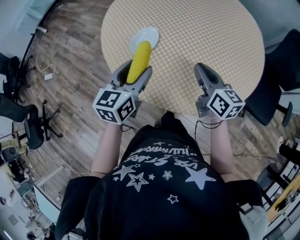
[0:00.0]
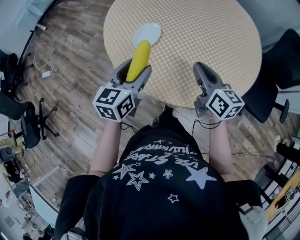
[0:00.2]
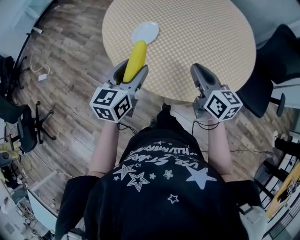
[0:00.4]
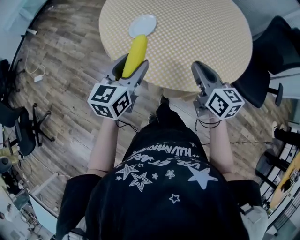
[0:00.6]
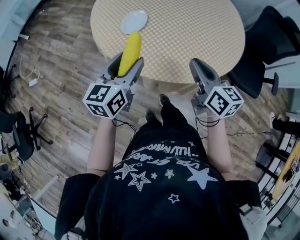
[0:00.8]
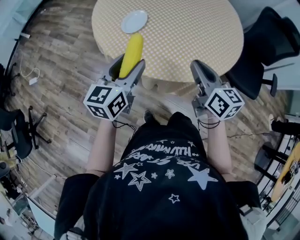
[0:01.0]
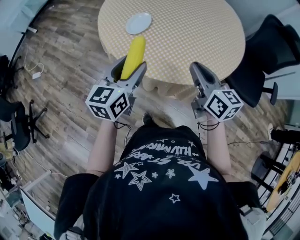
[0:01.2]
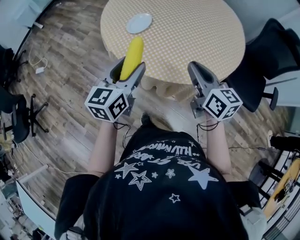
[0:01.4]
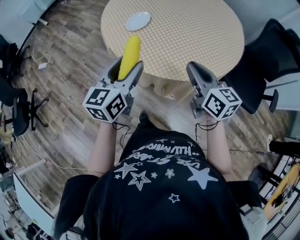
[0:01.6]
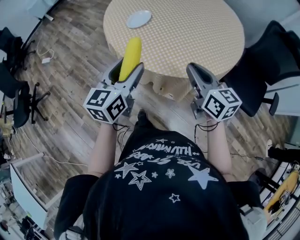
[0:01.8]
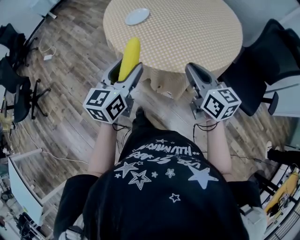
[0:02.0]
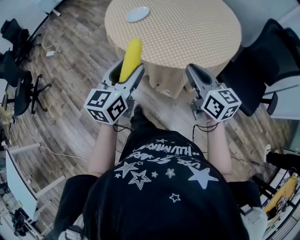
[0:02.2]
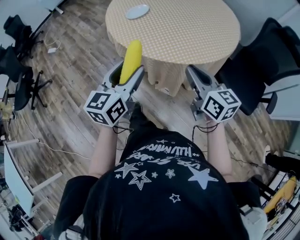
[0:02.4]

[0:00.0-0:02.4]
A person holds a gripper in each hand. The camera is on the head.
0:00.0 to 0:01.2: Both grippers travel together backward, roughly 15 cm.
0:01.2 to 0:02.4: Both grippers move backward and to the right, some 20 cm.

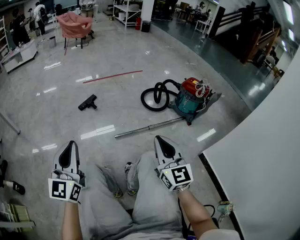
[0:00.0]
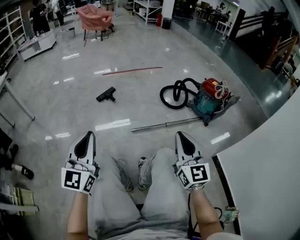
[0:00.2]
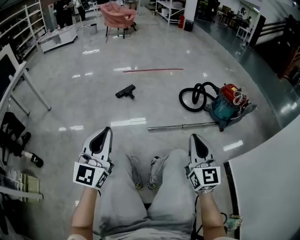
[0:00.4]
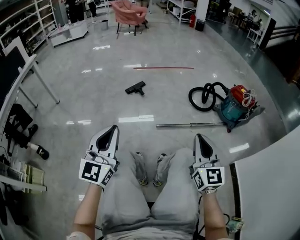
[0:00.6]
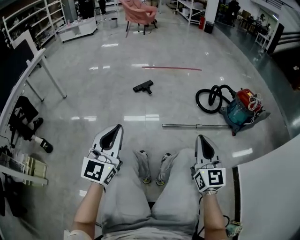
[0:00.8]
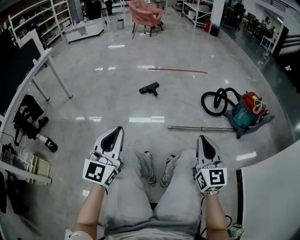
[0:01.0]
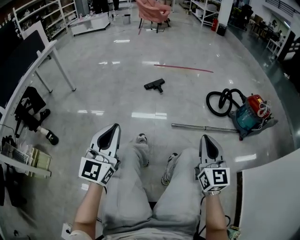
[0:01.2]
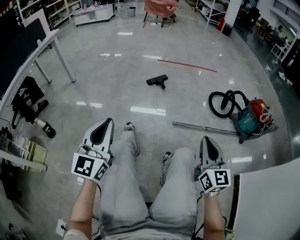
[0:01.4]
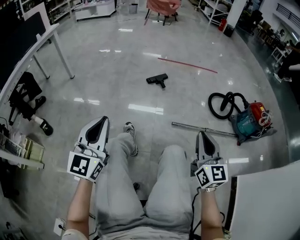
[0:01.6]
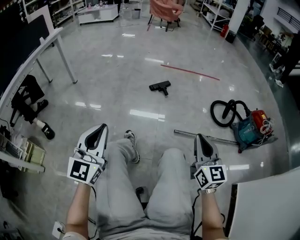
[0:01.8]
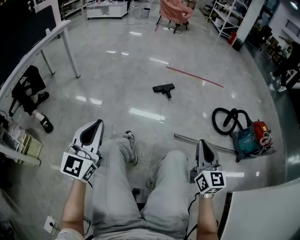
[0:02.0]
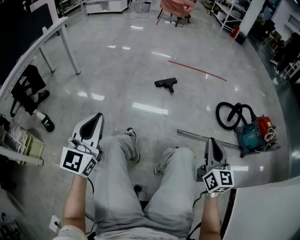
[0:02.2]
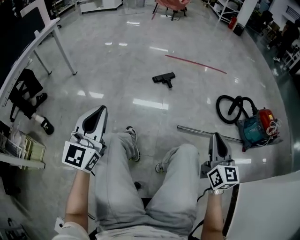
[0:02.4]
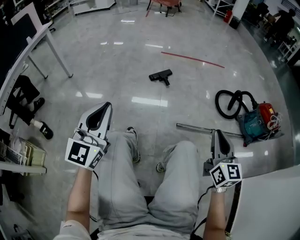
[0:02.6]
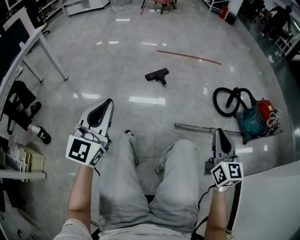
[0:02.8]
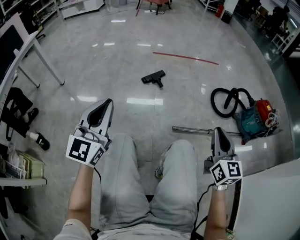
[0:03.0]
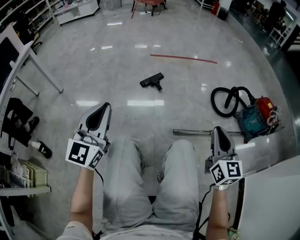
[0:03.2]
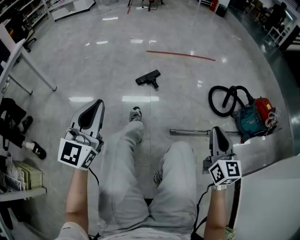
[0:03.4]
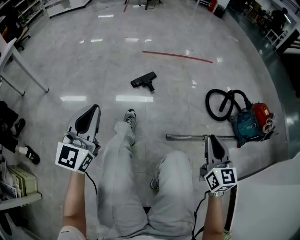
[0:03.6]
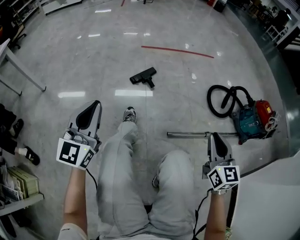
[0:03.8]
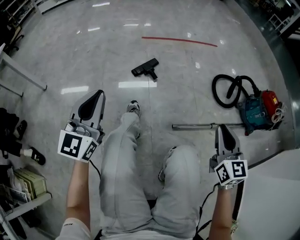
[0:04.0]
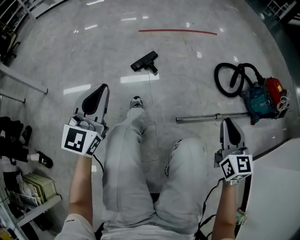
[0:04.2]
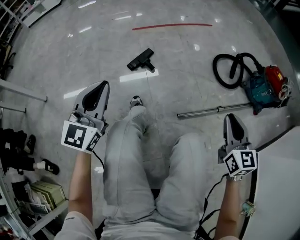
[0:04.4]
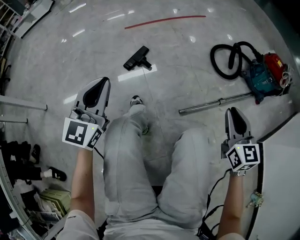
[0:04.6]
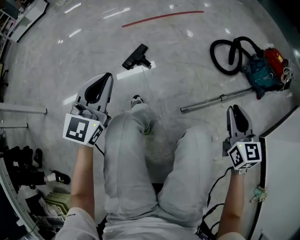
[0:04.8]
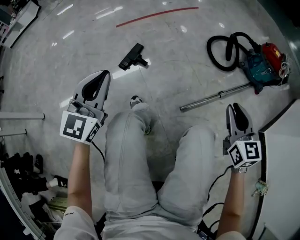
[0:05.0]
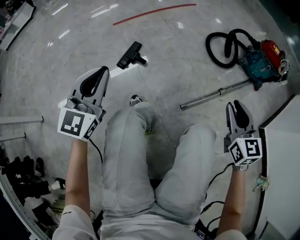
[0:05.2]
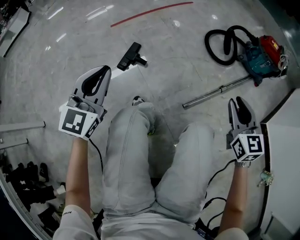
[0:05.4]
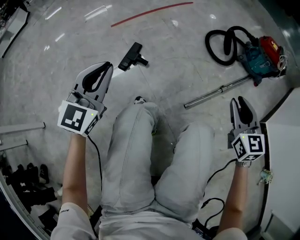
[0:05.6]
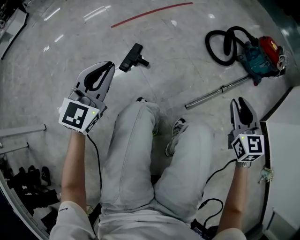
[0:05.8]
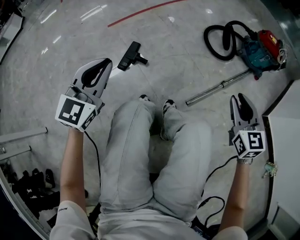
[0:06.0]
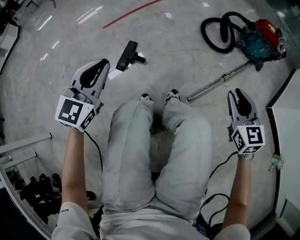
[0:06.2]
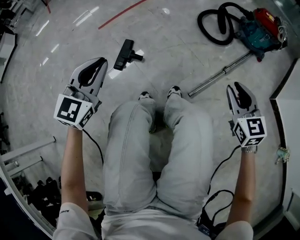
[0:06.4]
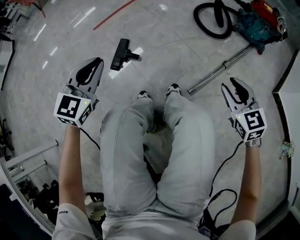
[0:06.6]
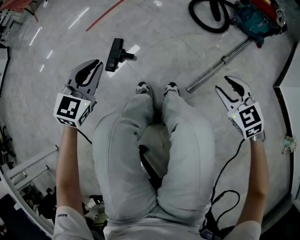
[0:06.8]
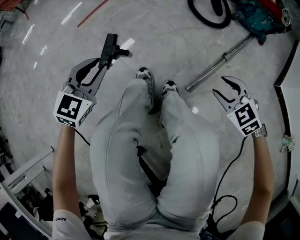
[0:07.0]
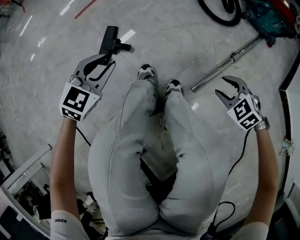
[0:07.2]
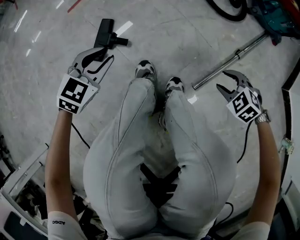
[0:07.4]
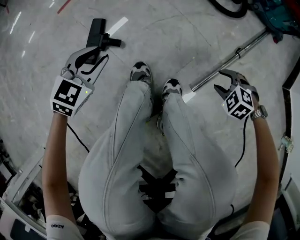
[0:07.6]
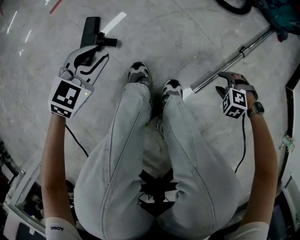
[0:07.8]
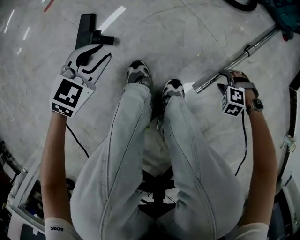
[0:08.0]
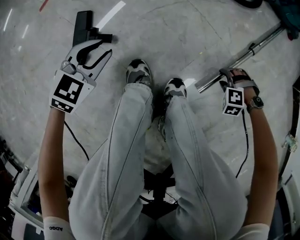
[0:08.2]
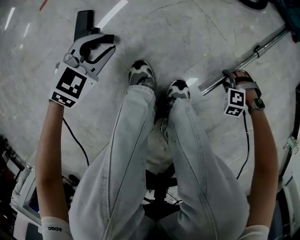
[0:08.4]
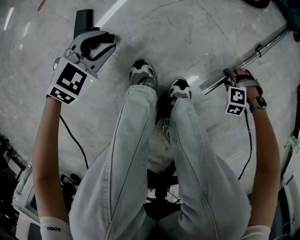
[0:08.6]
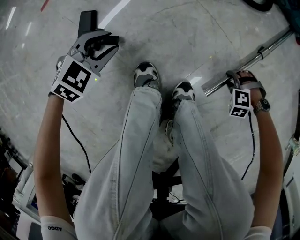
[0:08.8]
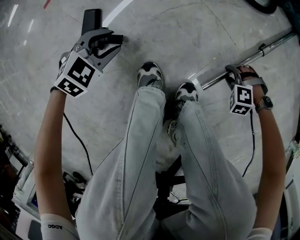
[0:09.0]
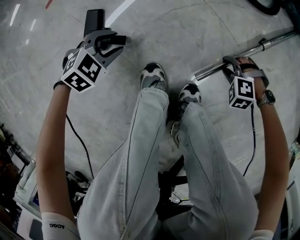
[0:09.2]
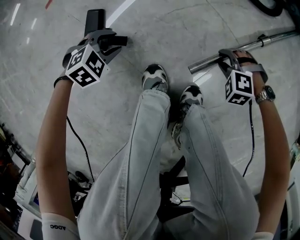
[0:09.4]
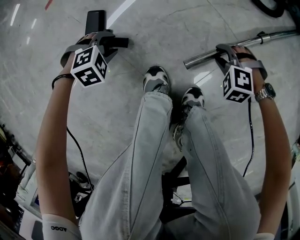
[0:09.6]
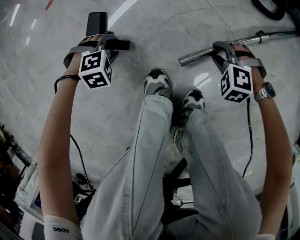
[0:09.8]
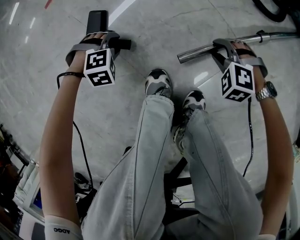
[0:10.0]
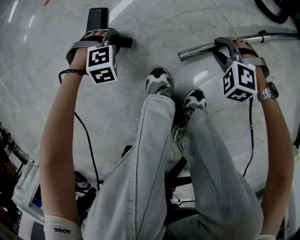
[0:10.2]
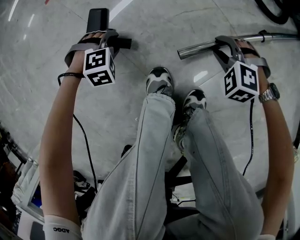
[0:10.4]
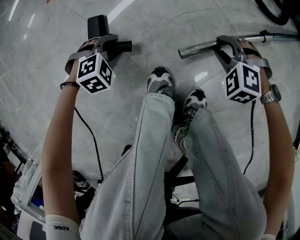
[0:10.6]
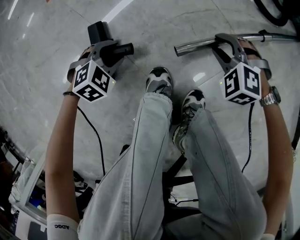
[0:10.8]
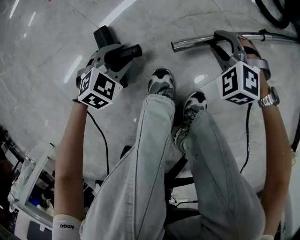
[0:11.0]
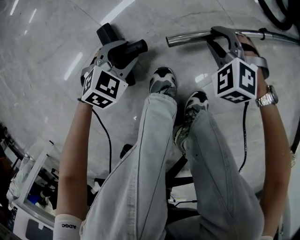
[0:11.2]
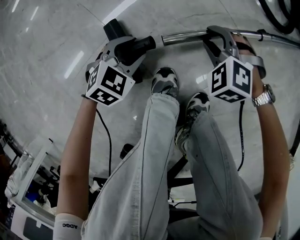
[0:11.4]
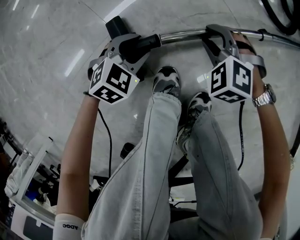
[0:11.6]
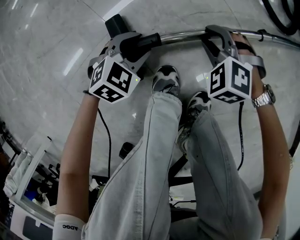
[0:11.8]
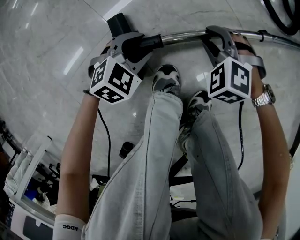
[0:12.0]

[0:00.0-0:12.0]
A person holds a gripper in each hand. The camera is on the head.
0:00.0 to 0:01.6: The left gripper moves to the left, roughly 15 cm; the right gripper is displaced to the left and forward by approximately 15 cm.
0:01.6 to 0:03.0: The right gripper is displaced forward and to the right by approximately 15 cm. Meanwhile the left gripper goes roughly 20 cm forward.
0:03.0 to 0:04.4: The right gripper moves forward and downward, about 15 cm. Meanwhile the left gripper travels forward by approximately 25 cm.
0:04.4 to 0:06.0: The left gripper travels forward by approximately 15 cm, and swivels roughly 30 degrees, while the right gripper is displaced to the left by some 5 cm.
0:06.0 to 0:07.6: The two grippers go about 35 cm downward. The left gripper tips its fingers downward by roughly 30 degrees, and opens; the right gripper tips its fingers downward by approximately 50 degrees, and opens up.
0:07.6 to 0:09.0: The grippers both shift downward by approximately 15 cm. The left gripper swivels approximately 20 degrees, while the right gripper swivels approximately 30 degrees.
0:09.0 to 0:10.4: The left gripper travels downward by about 10 cm, and turns by approximately 30 degrees; the right gripper ends up about 20 cm from where it was.
0:10.4 to 0:12.0: The right gripper ends up approximately 10 cm from where it was, while the left gripper shifts by approximately 10 cm, and changes its angle by roughly 40 degrees.

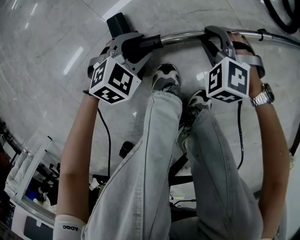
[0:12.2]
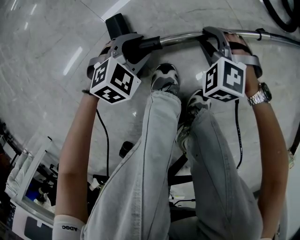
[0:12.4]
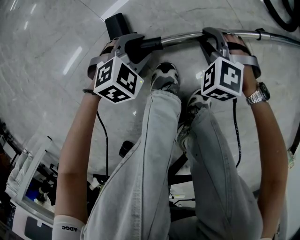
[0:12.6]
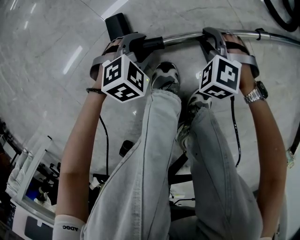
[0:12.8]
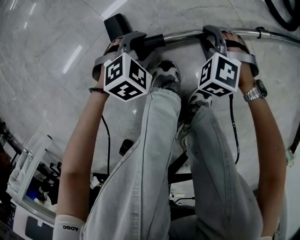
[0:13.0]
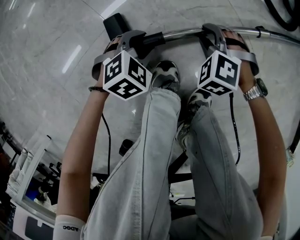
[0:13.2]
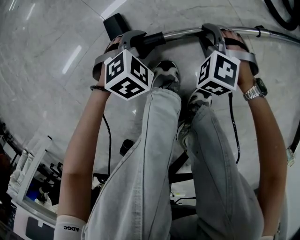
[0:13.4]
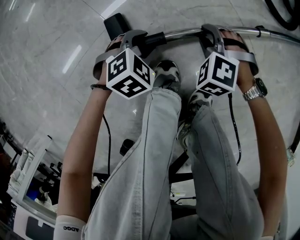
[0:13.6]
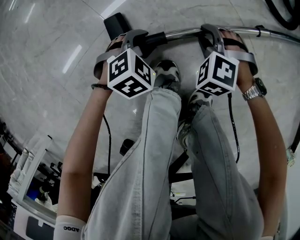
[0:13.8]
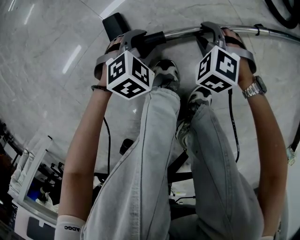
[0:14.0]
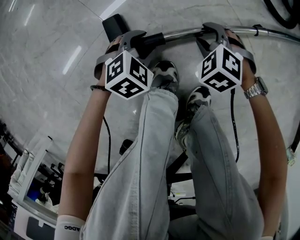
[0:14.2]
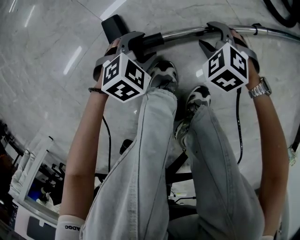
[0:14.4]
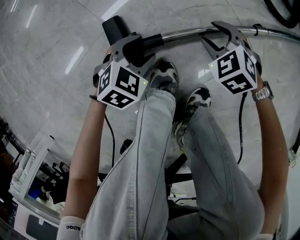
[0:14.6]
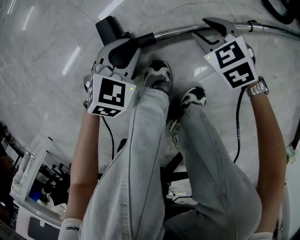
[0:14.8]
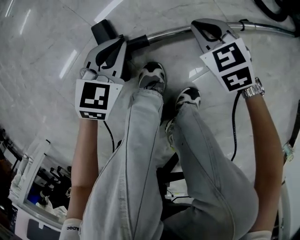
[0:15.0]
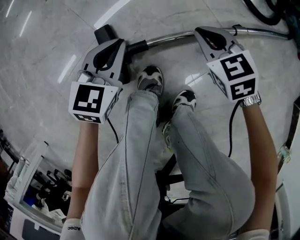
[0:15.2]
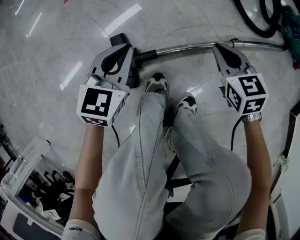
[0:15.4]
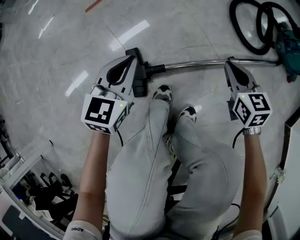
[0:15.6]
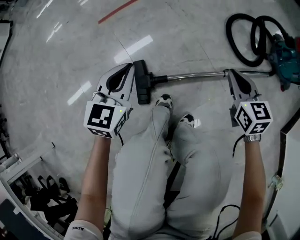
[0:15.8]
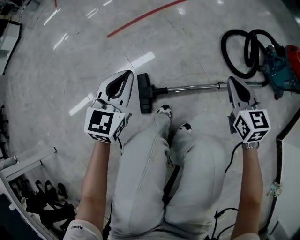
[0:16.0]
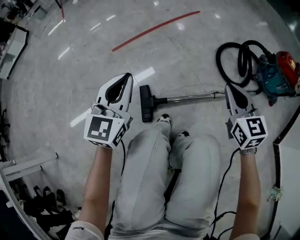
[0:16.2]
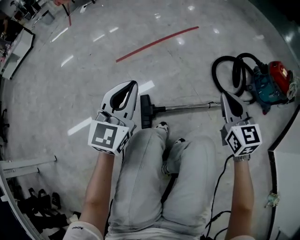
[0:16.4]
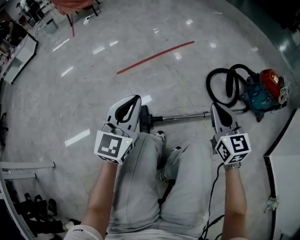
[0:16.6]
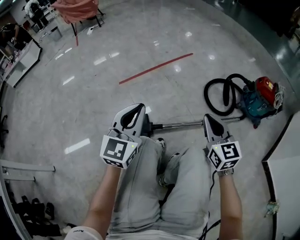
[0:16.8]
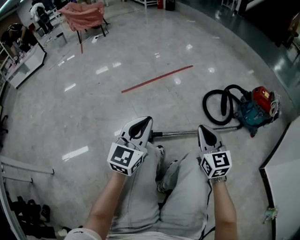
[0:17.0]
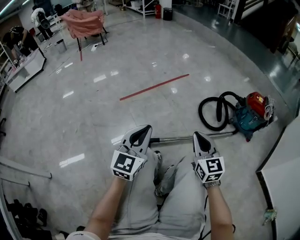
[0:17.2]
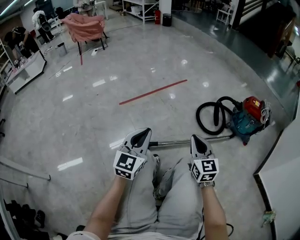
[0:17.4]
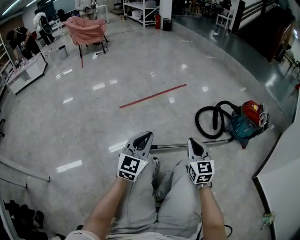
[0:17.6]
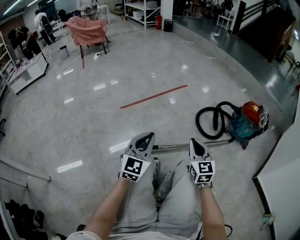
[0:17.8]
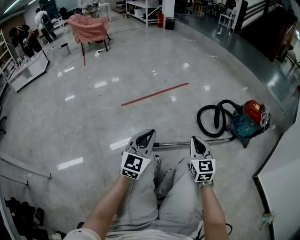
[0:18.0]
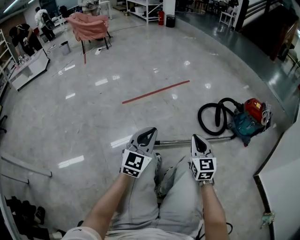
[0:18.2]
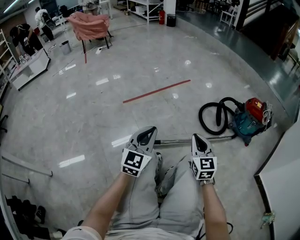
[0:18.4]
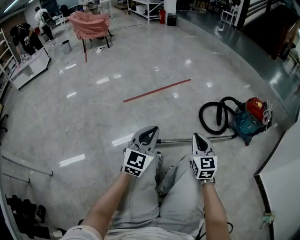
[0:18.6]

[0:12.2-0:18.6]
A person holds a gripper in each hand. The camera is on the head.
0:12.2 to 0:13.8: The grippers stay close to where they were, moving slightly.
0:13.8 to 0:15.4: Both grippers move upward, roughly 20 cm. The left gripper tips its fingers upward by some 30 degrees, and closes its fingers; the right gripper rolls clockwise, seen from behind, by approximately 50 degrees, and closes its fingers.
0:15.4 to 0:17.0: Both grippers move upward, approximately 40 cm. The left gripper tilts its fingers approximately 30 degrees upward, while the right gripper tilts its fingers roughly 30 degrees upward.
0:17.0 to 0:18.6: The grippers make only small movements.

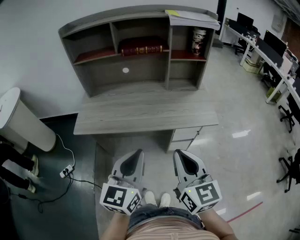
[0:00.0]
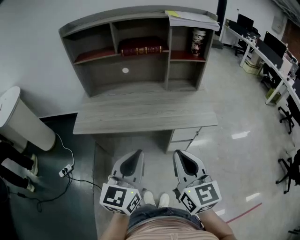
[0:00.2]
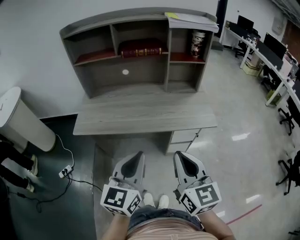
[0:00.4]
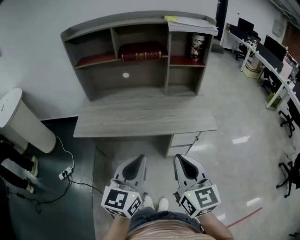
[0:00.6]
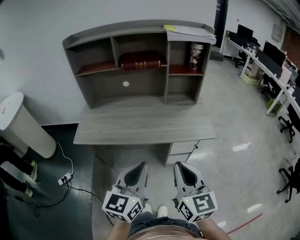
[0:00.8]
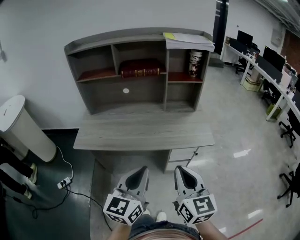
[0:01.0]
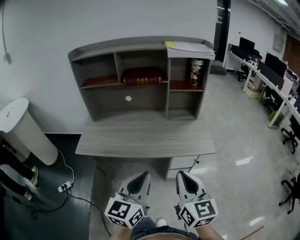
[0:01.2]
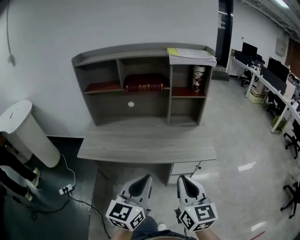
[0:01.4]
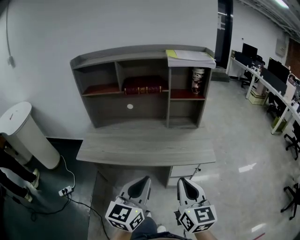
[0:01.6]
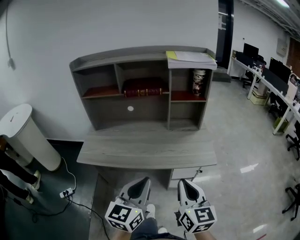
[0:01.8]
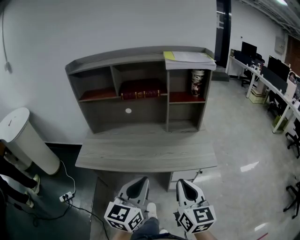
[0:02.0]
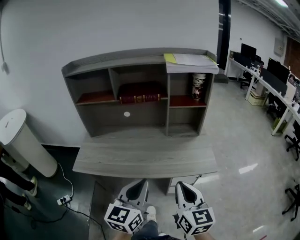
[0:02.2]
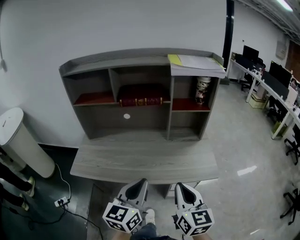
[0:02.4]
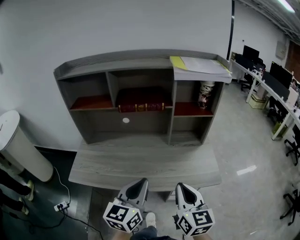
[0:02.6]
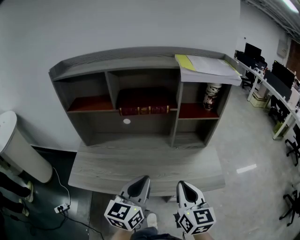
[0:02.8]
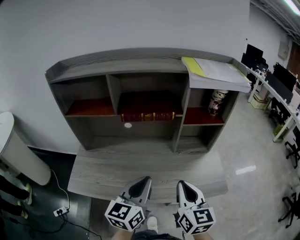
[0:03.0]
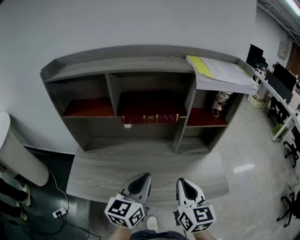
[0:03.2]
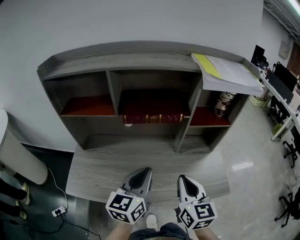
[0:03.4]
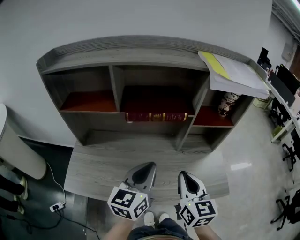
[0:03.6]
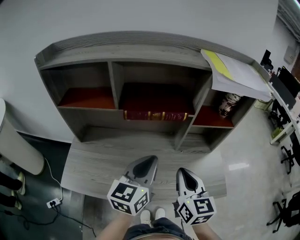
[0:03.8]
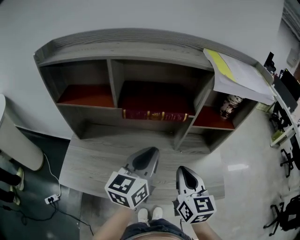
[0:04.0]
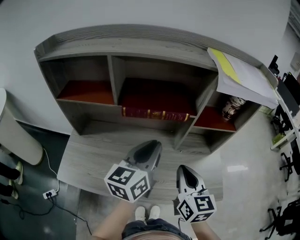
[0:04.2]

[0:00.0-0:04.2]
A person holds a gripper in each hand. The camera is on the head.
0:00.0 to 0:01.4: The grippers both shift to the right by about 5 cm.
0:01.4 to 0:02.8: The grippers both shift forward by about 20 cm.
0:02.8 to 0:04.2: The grippers both shift forward by roughly 15 cm.
